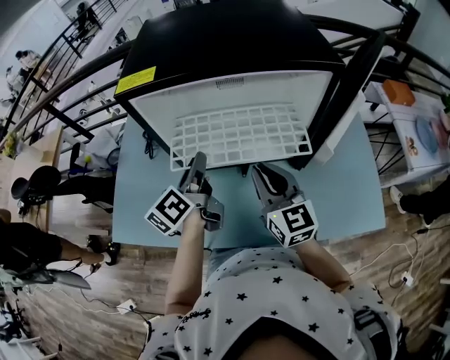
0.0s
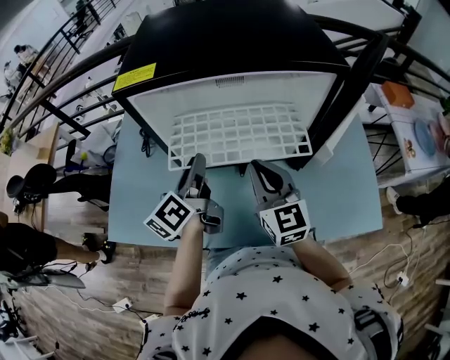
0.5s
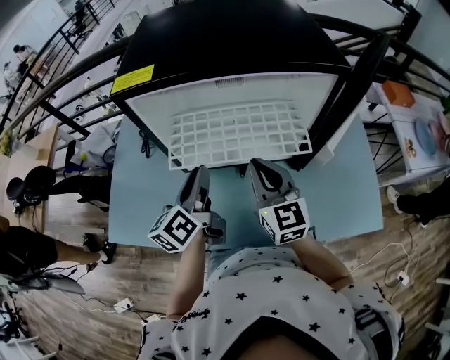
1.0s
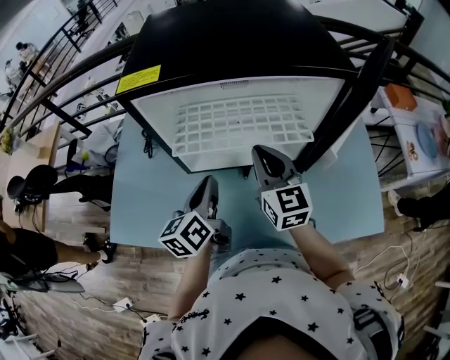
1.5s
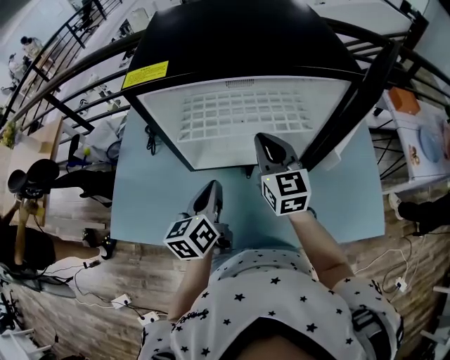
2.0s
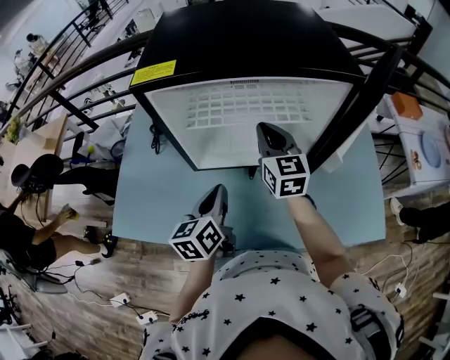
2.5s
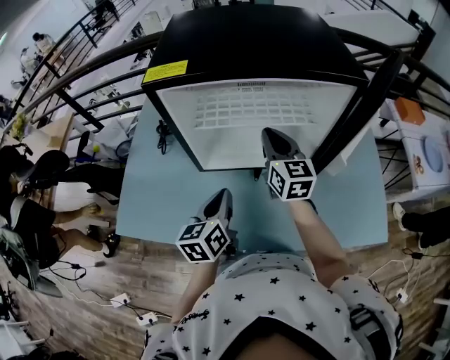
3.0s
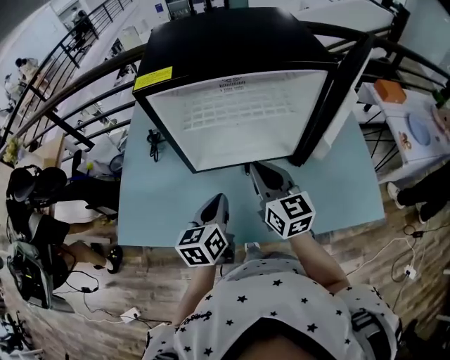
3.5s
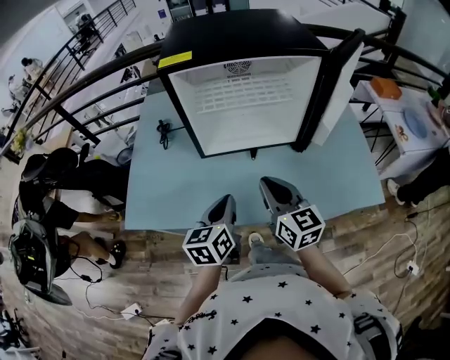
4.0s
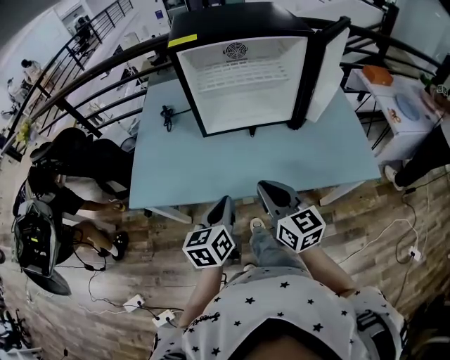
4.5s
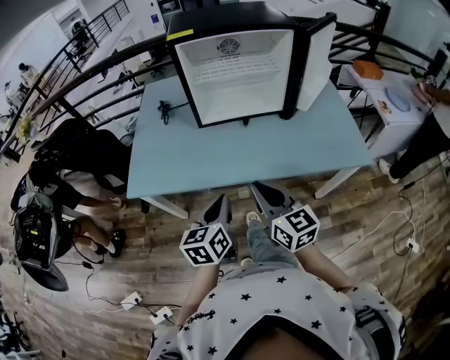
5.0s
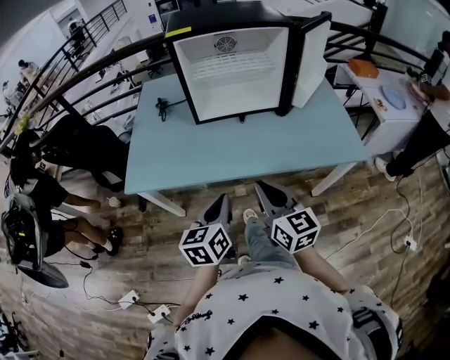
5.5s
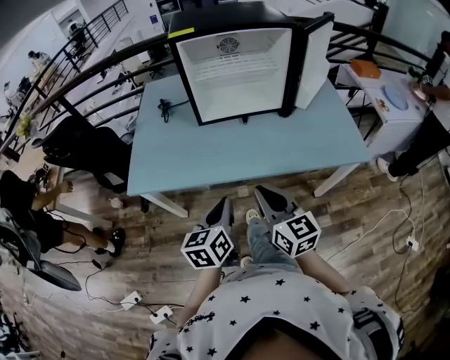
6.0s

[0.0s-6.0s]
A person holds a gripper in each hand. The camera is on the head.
0.0s to 2.0s: The right gripper goes about 10 cm forward. Meanwhile the left gripper travels backward by approximately 5 cm, rotates about 20 degrees, and closes.
2.0s to 4.0s: The right gripper shifts roughly 20 cm backward, while the left gripper shifts roughly 15 cm backward.
4.0s to 6.0s: Both grippers travel together backward, about 20 cm.

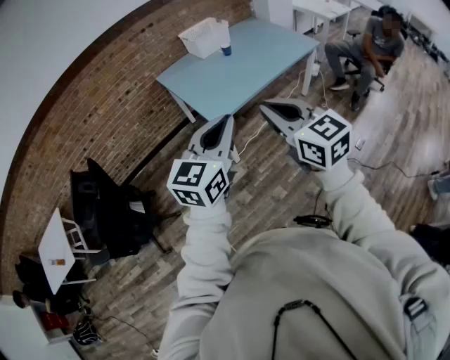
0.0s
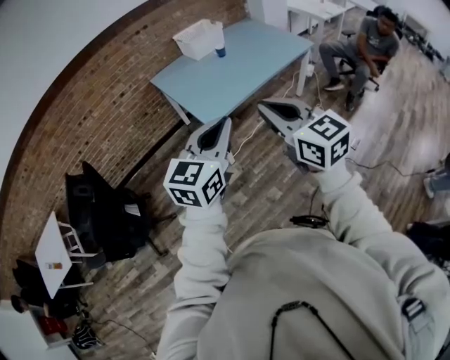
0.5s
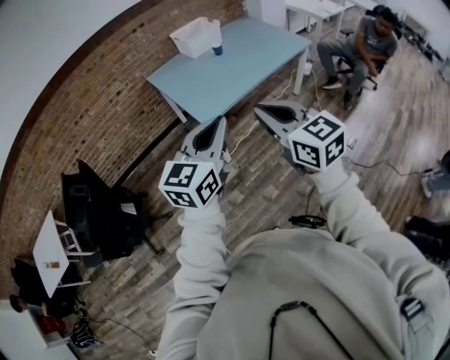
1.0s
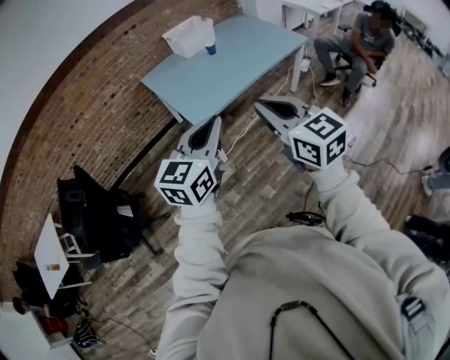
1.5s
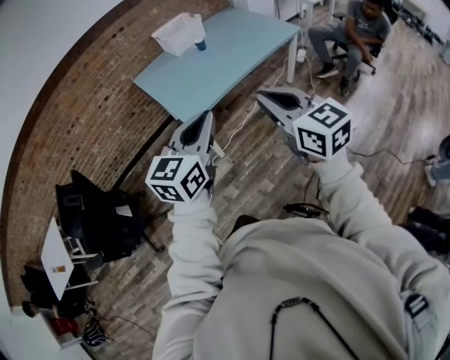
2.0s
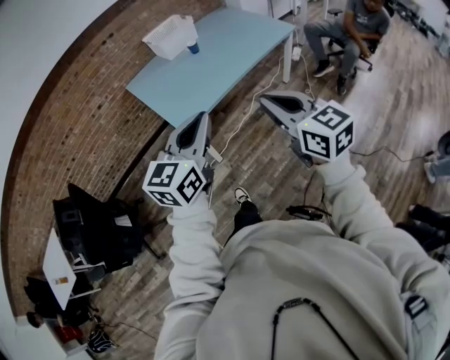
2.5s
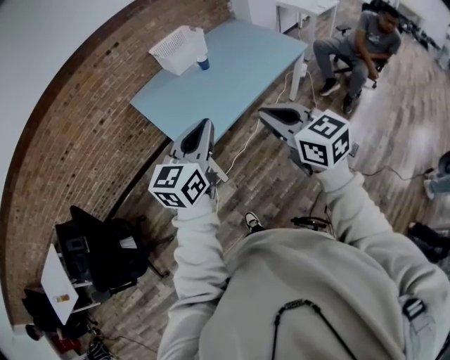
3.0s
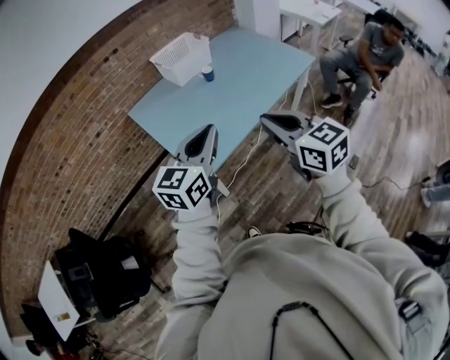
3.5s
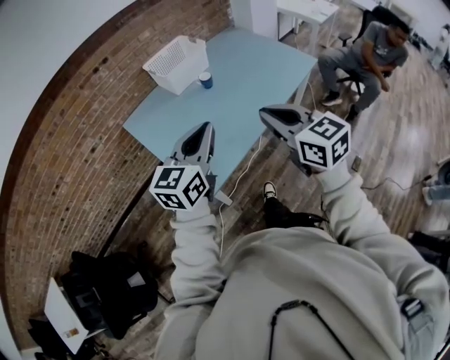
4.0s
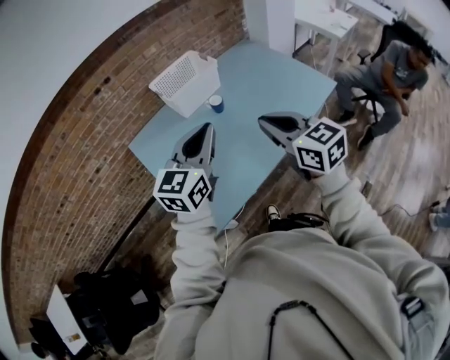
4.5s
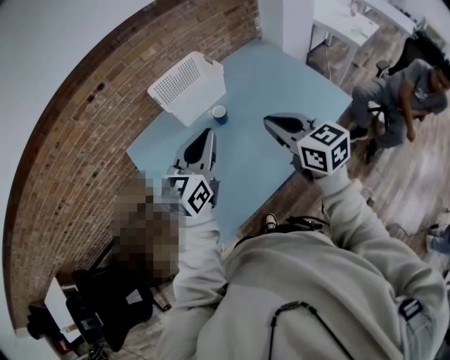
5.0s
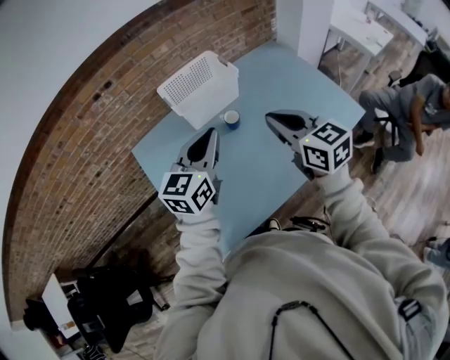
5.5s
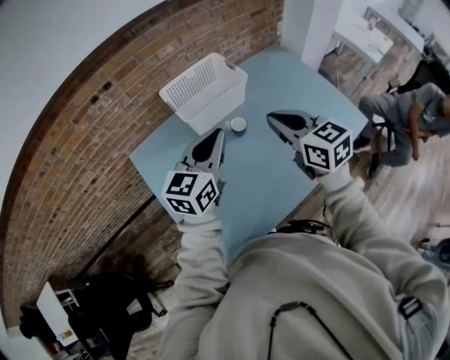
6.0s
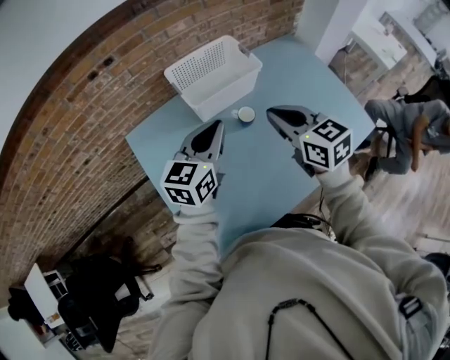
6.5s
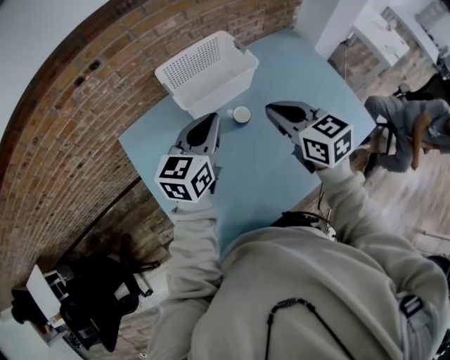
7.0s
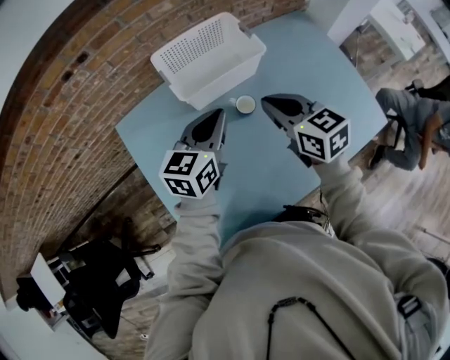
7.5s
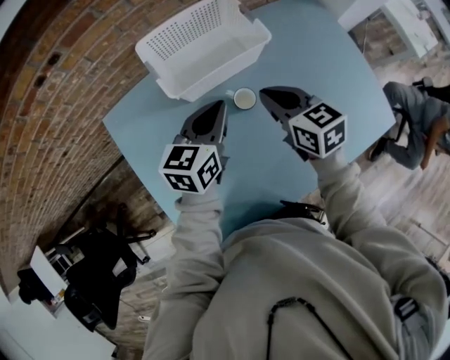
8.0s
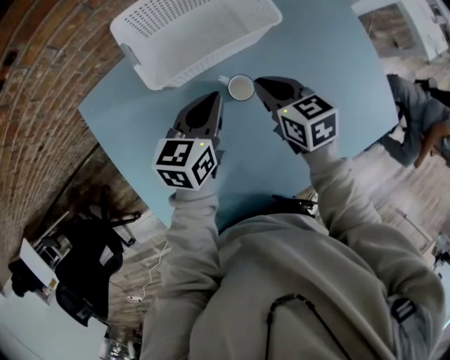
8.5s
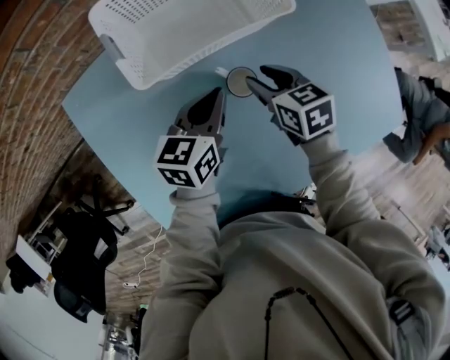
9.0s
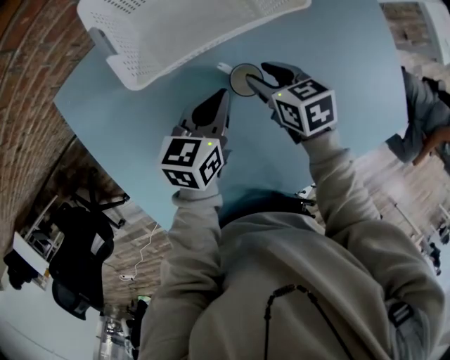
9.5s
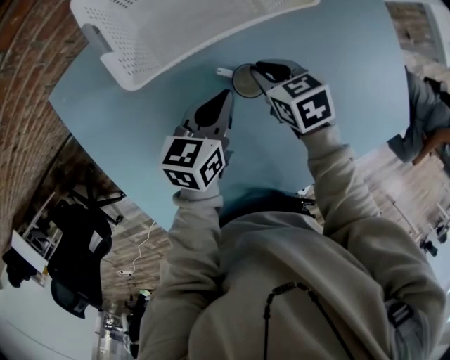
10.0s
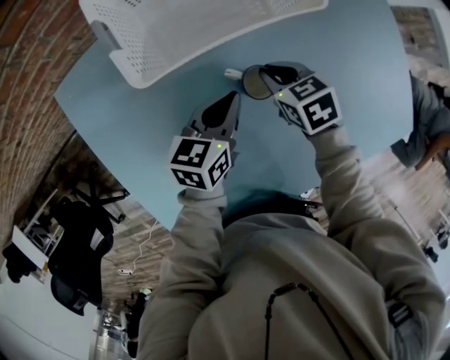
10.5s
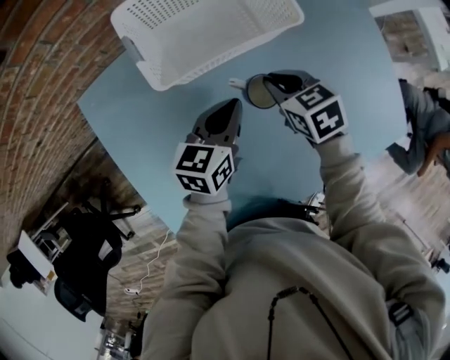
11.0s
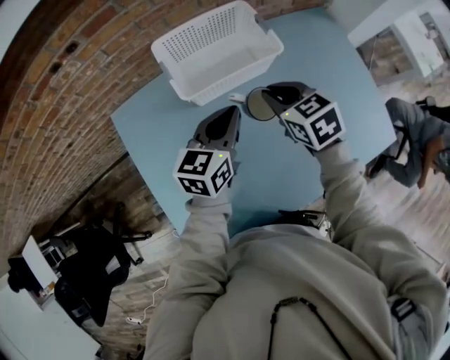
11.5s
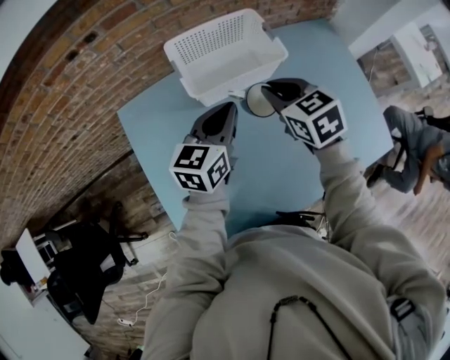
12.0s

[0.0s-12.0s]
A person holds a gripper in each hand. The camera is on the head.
0.0s to 2.0s: Both grippers travel together to the right, roughly 10 cm.
2.0s to 4.0s: The grippers both shift forward by some 40 cm.
4.0s to 6.0s: The grippers both shift forward by approximately 40 cm.
6.0s to 8.0s: The two grippers go about 20 cm downward and forward. The left gripper changes its angle by roughly 20 degrees.
8.0s to 10.0s: Both grippers travel together downward, some 20 cm. The right gripper turns by approximately 30 degrees, and opens, then closes once more.
10.0s to 12.0s: The grippers both shift upward by roughly 25 cm. The left gripper turns by some 20 degrees. The right gripper turns by roughly 20 degrees.

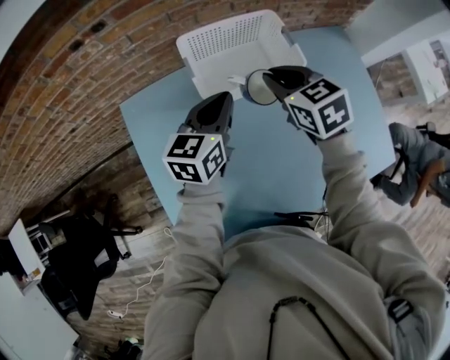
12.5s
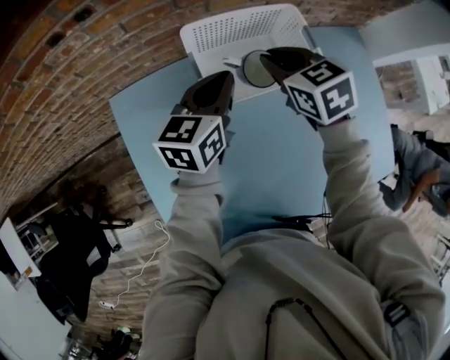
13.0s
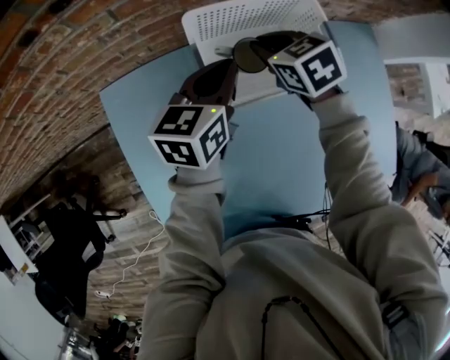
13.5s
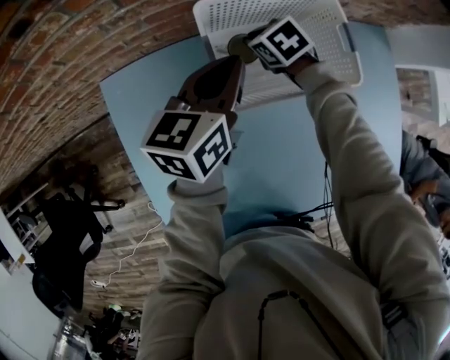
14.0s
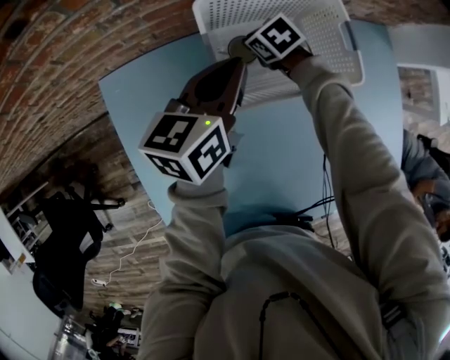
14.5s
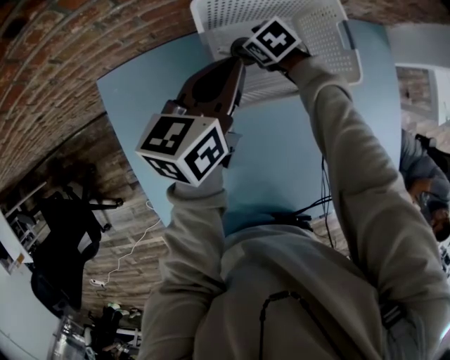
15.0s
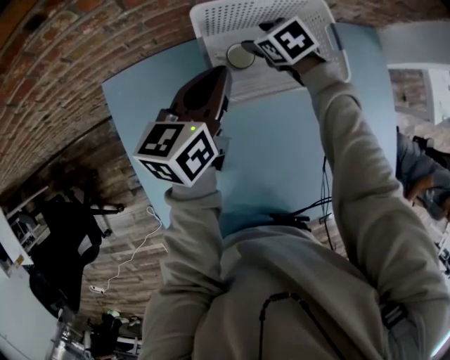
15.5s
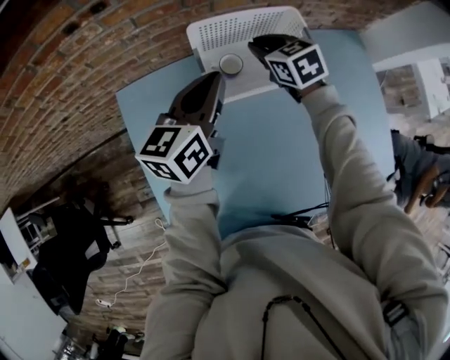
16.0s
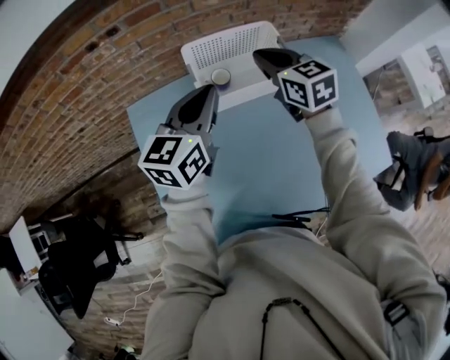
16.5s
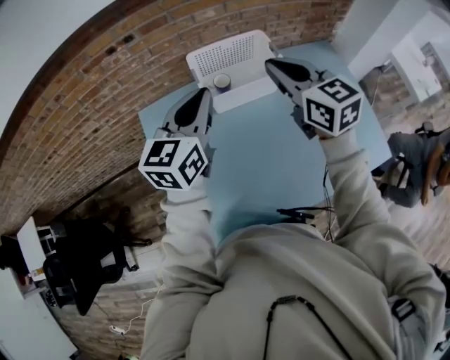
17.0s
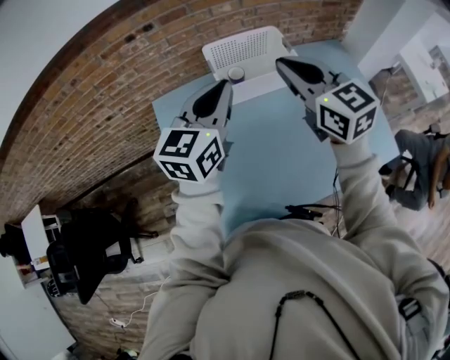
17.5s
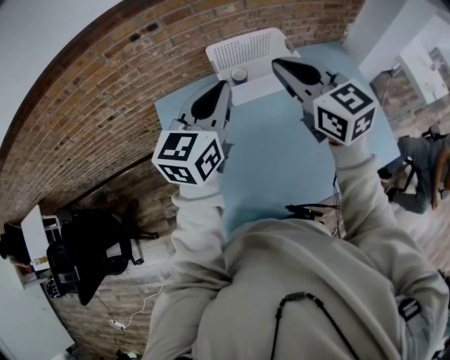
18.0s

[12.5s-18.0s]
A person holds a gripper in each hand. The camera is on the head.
12.5s to 14.5s: The right gripper heads downward and forward, covering some 30 cm, and swivels about 30 degrees; the left gripper travels forward and downward by roughly 15 cm.
14.5s to 16.0s: The right gripper heads upward, covering roughly 20 cm, changes its angle by approximately 30 degrees, and opens, then closes once more; the left gripper heads upward and backward, covering some 10 cm.
16.0s to 18.0s: The right gripper is displaced upward and backward by approximately 40 cm, and angles its fingers upward, by some 30 degrees. The left gripper heads backward and upward, covering some 25 cm.

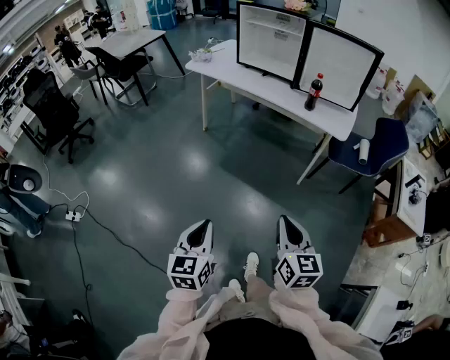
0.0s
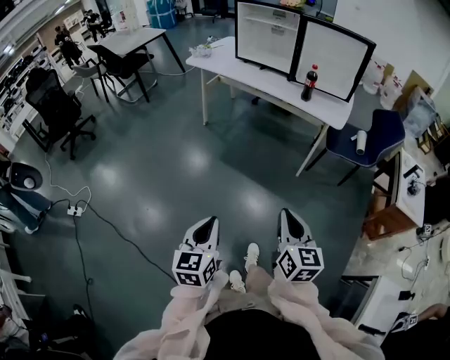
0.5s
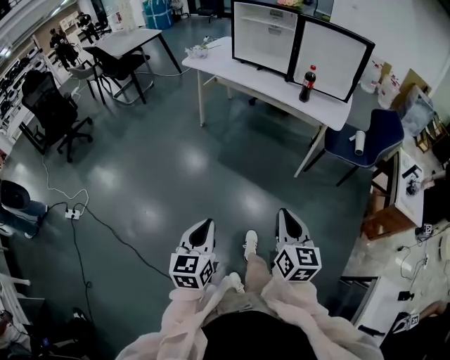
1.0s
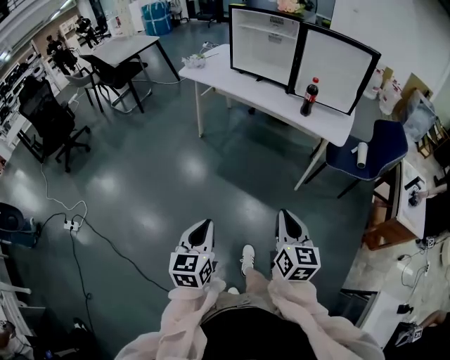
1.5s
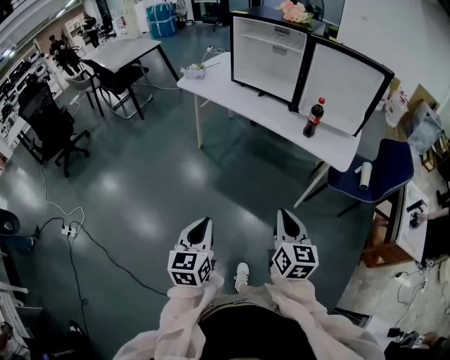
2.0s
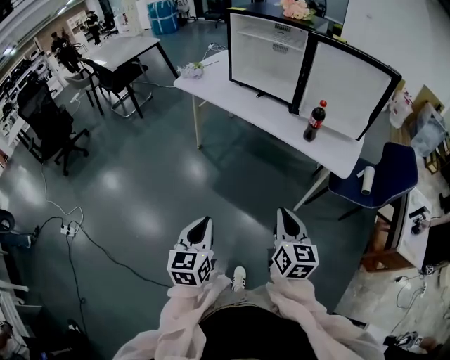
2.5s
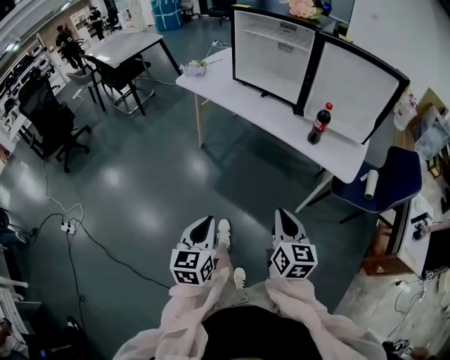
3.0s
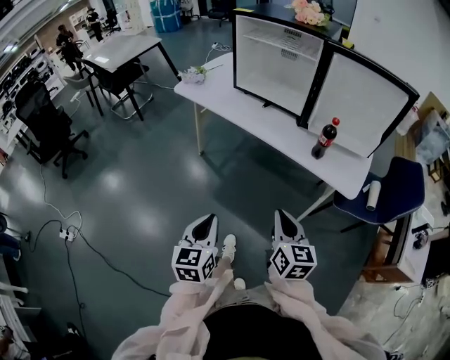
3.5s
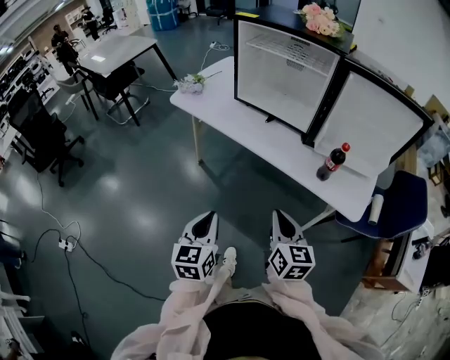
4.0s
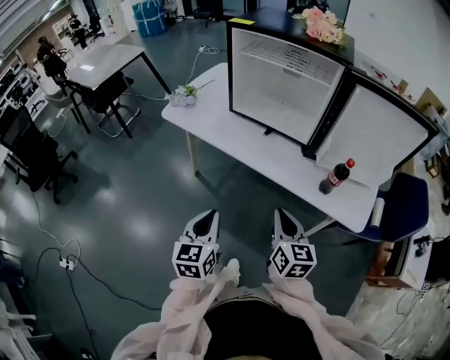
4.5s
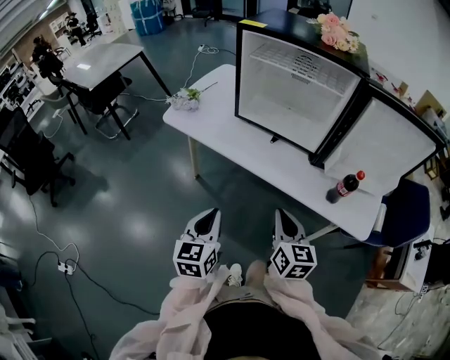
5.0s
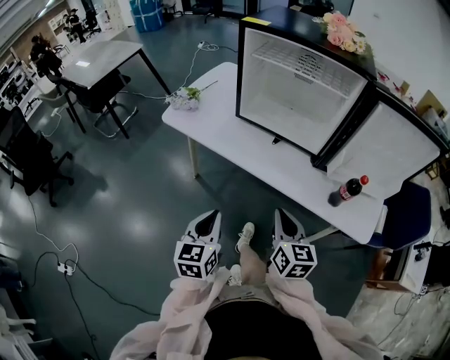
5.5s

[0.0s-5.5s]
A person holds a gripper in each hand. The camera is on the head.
0.0s to 2.0s: The grippers both shift forward by some 20 cm.
2.0s to 3.5s: Both grippers travel together forward, some 15 cm.
3.5s to 5.5s: Both grippers travel together forward, roughly 25 cm.
